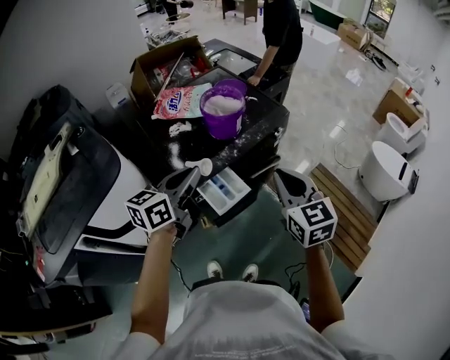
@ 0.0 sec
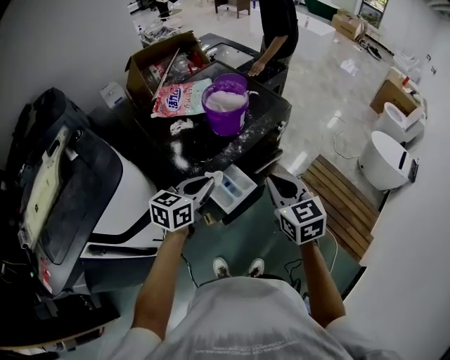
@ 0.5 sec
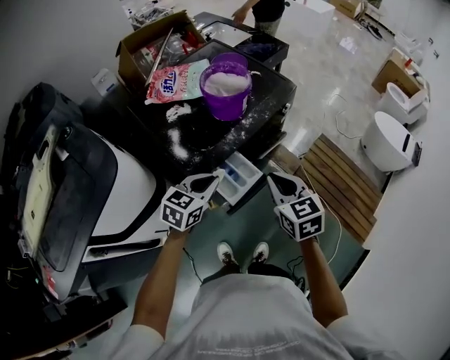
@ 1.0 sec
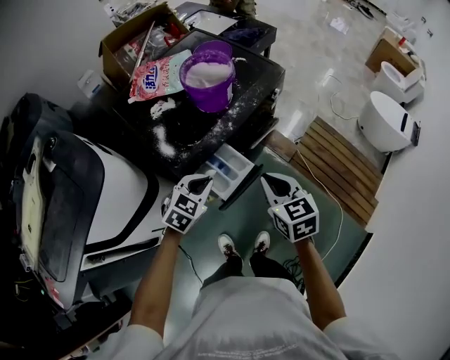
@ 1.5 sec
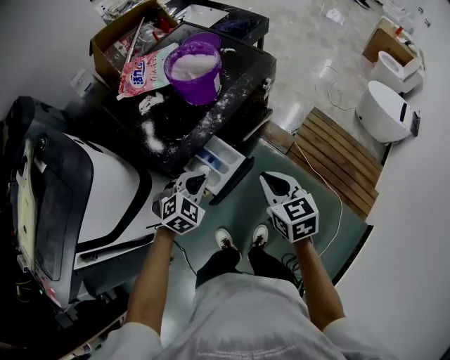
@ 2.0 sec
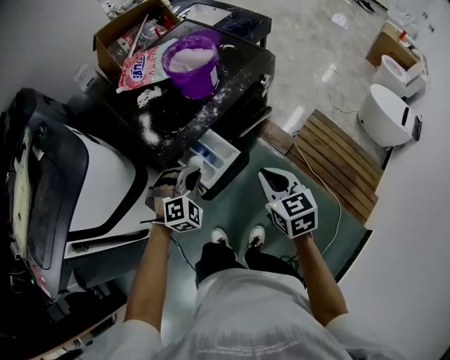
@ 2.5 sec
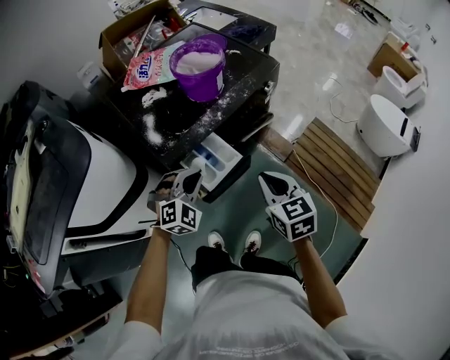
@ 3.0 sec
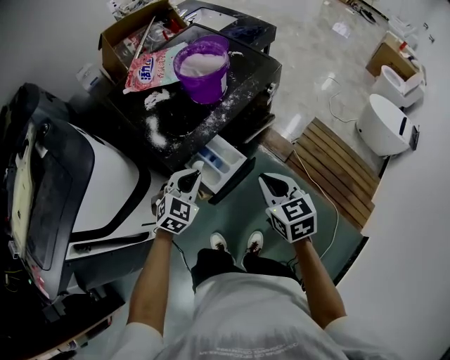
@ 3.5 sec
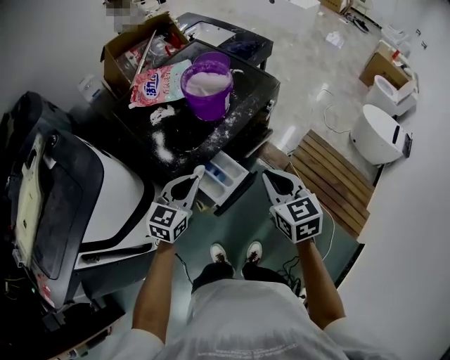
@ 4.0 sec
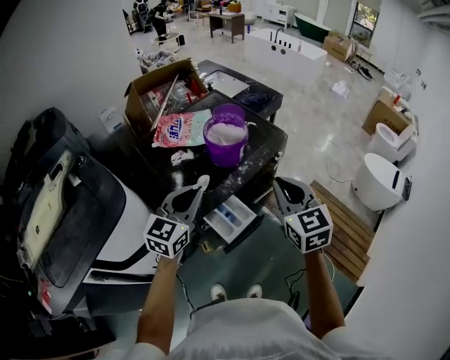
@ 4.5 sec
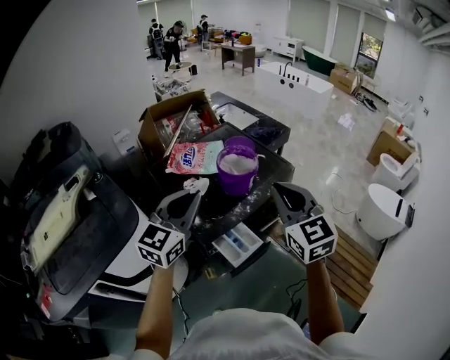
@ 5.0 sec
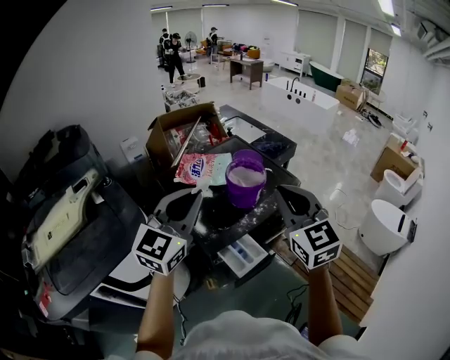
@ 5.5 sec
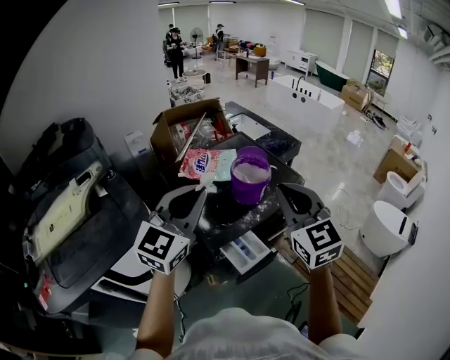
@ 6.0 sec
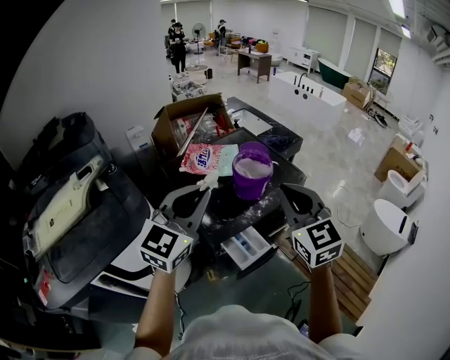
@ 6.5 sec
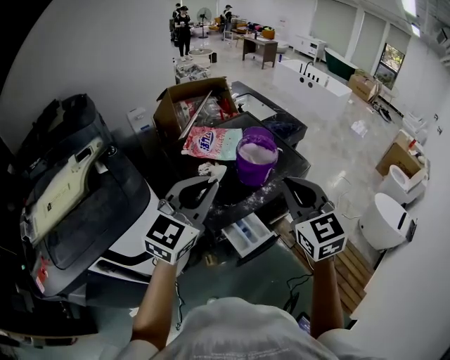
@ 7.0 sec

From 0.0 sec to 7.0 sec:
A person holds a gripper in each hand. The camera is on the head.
From 0.0 sec to 2.0 sec: The grippers both shift downward by approximately 20 cm. The left gripper rolls clockwise, seen from behind, by some 60 degrees.
From 3.5 sec to 5.0 sec: The grippers both shift upward by about 30 cm. The right gripper rotates roughly 30 degrees, while the left gripper tilts its fingers approximately 40 degrees upward.

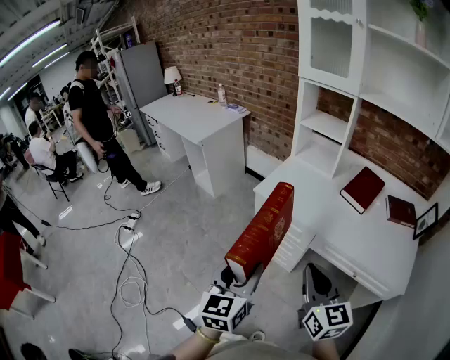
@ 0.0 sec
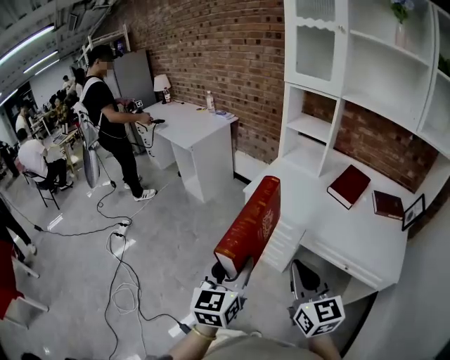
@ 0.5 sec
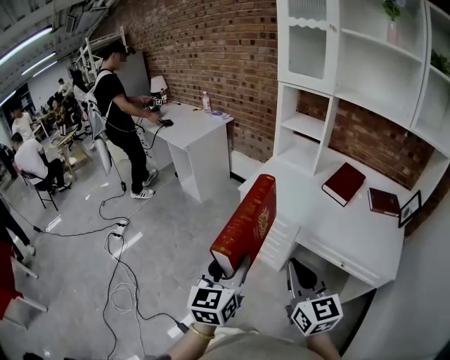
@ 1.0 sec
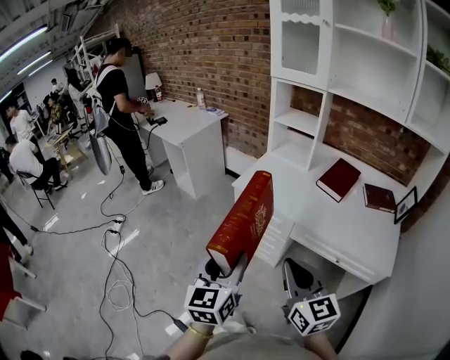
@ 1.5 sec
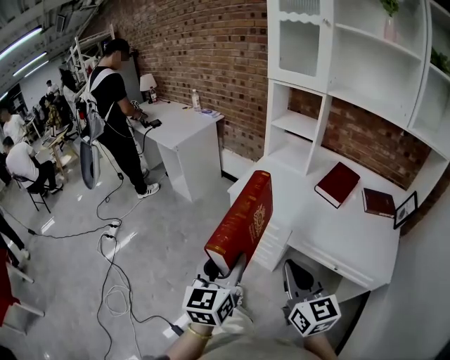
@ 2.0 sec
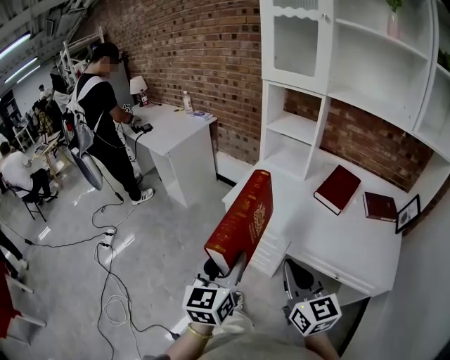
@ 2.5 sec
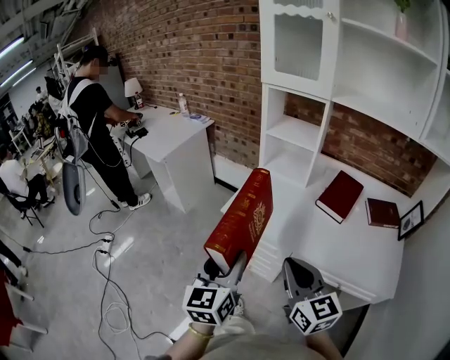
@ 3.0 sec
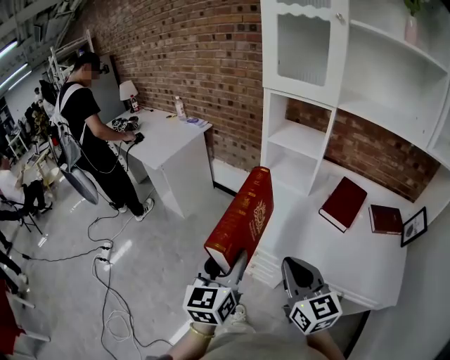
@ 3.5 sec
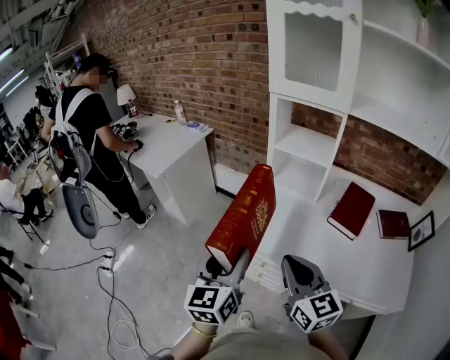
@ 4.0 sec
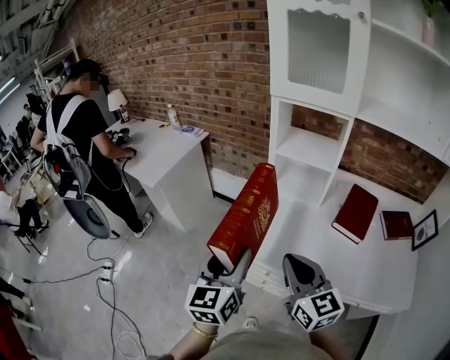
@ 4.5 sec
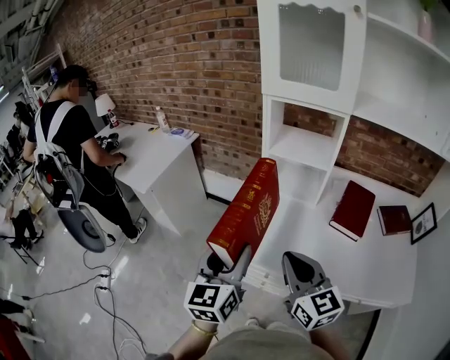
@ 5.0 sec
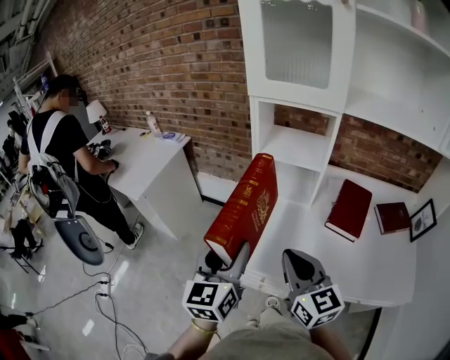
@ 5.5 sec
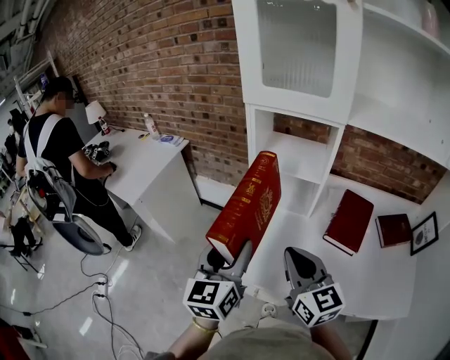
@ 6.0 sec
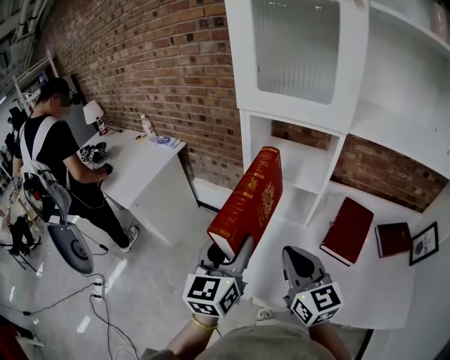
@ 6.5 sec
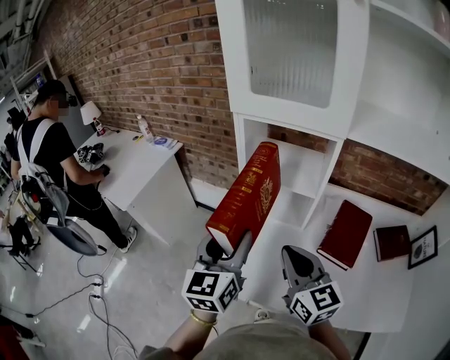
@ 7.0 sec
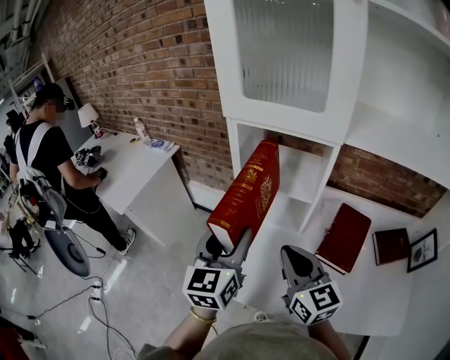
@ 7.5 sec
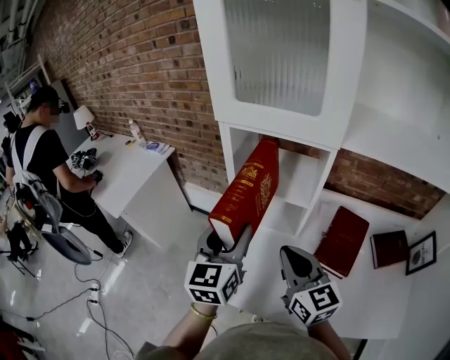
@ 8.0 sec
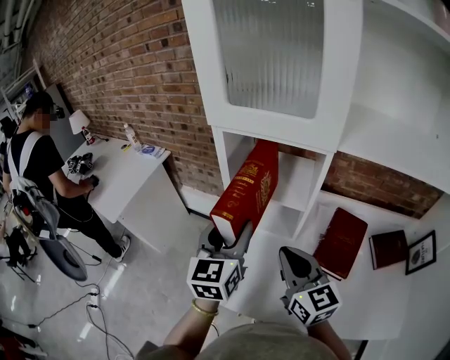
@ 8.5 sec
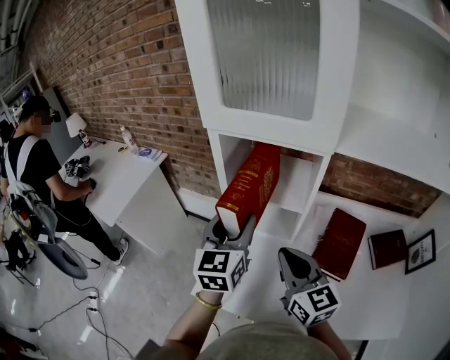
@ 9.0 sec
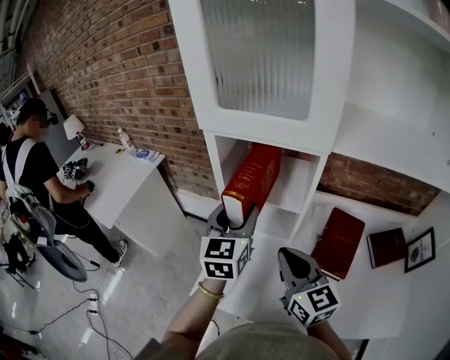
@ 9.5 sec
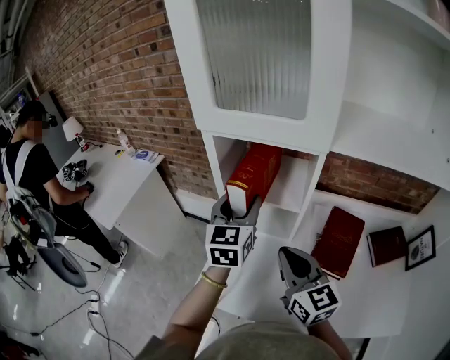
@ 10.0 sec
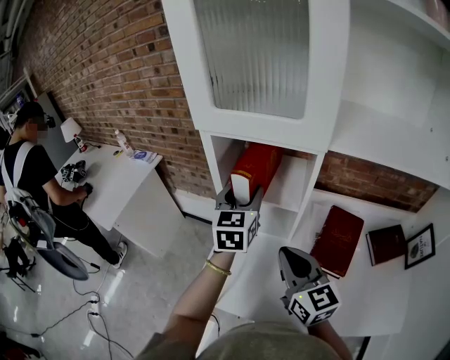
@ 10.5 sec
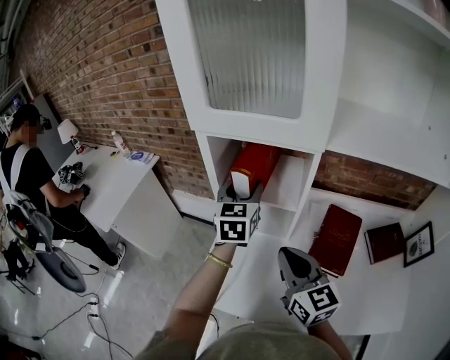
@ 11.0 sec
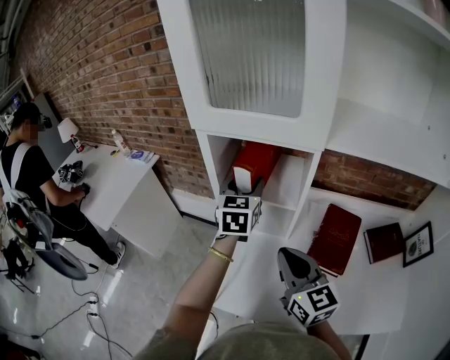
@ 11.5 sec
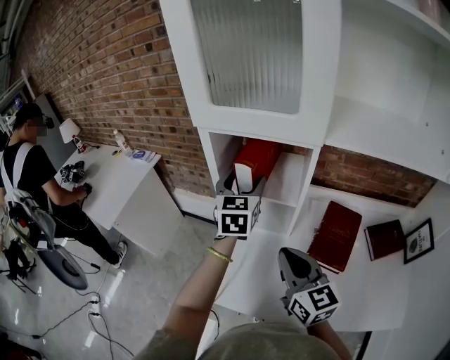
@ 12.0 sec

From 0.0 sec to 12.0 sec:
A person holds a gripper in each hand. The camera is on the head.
From 2.0 sec to 4.0 sec: The grippers both shift forward by about 25 cm.
From 4.0 sec to 6.0 sec: Both grippers move forward, roughly 15 cm.
From 6.0 sec to 8.0 sec: The two grippers go roughly 15 cm forward and to the right.
From 8.0 sec to 10.0 sec: The left gripper heads forward and to the right, covering about 10 cm.
From 10.0 sec to 12.0 sec: The left gripper shifts roughly 5 cm forward.

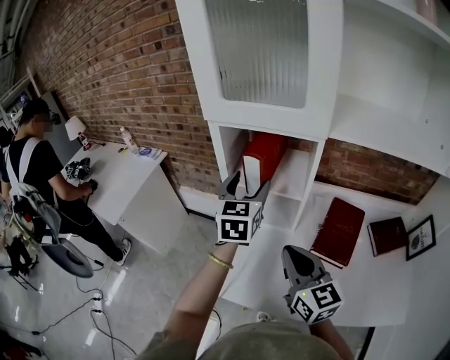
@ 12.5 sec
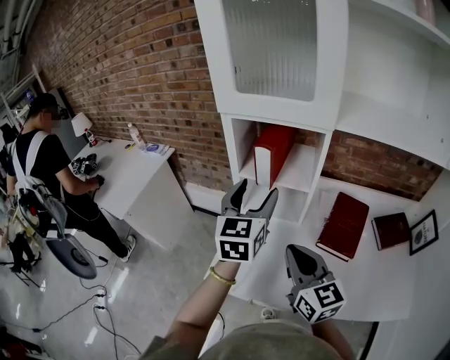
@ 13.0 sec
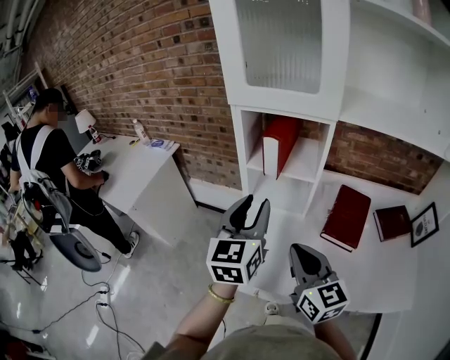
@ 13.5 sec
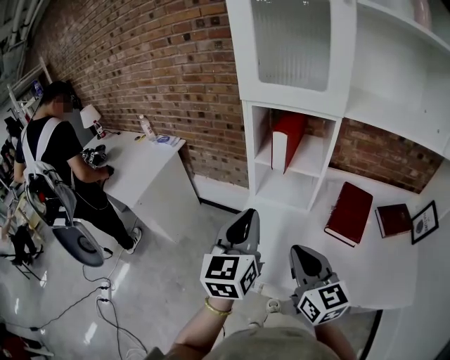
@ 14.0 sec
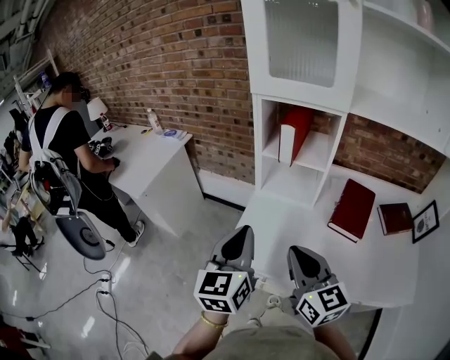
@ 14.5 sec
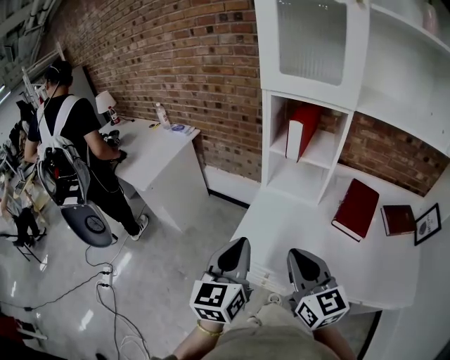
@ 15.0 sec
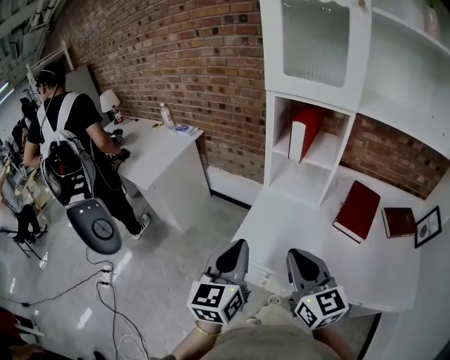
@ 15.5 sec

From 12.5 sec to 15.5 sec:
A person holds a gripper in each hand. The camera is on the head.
From 12.5 sec to 14.0 sec: The left gripper moves backward and to the left, approximately 25 cm, and closes its fingers. Meanwhile the right gripper is displaced backward and to the left by some 10 cm.
From 14.0 sec to 15.5 sec: The left gripper travels backward and to the left by roughly 15 cm. The right gripper shifts roughly 10 cm backward and to the left.

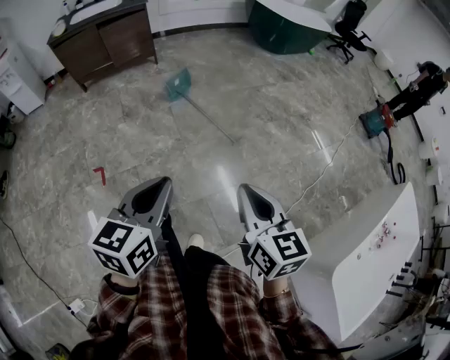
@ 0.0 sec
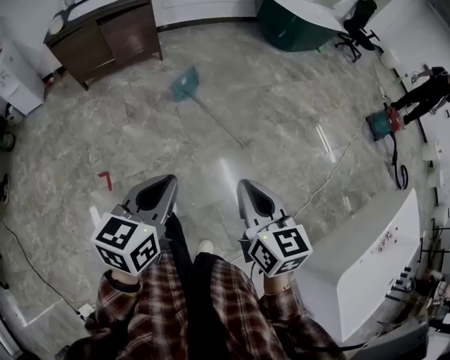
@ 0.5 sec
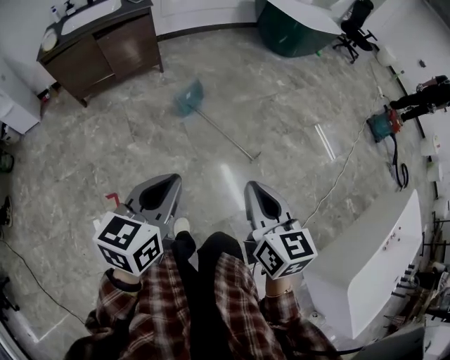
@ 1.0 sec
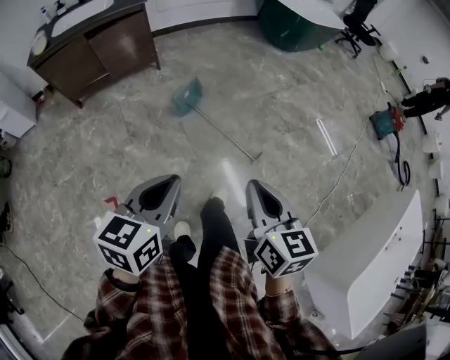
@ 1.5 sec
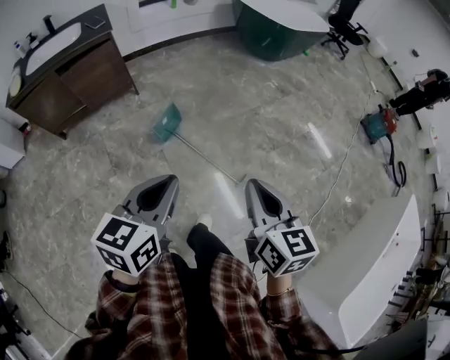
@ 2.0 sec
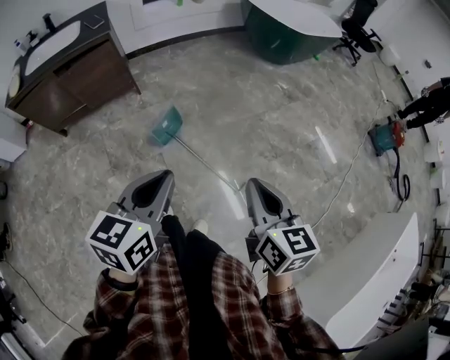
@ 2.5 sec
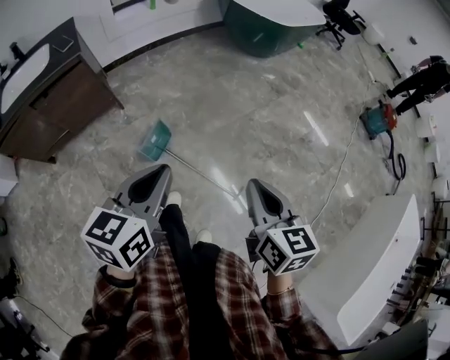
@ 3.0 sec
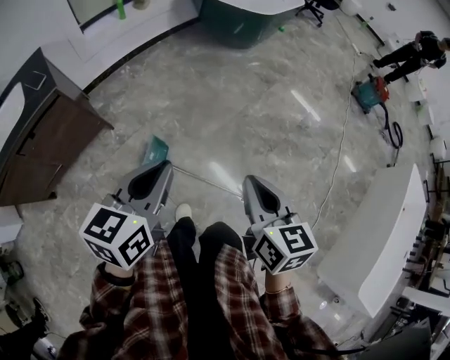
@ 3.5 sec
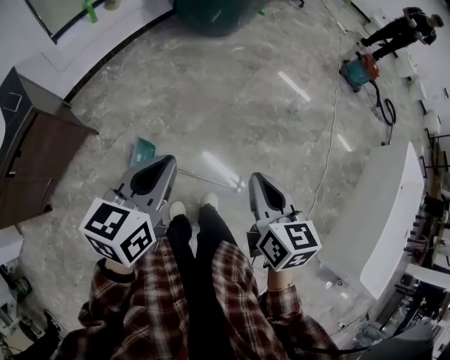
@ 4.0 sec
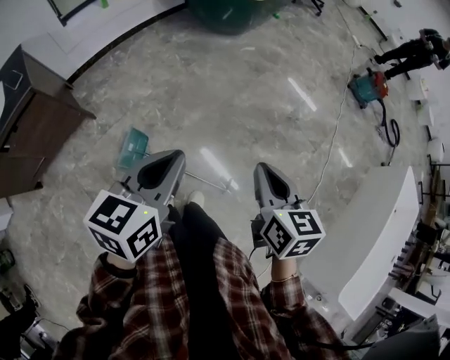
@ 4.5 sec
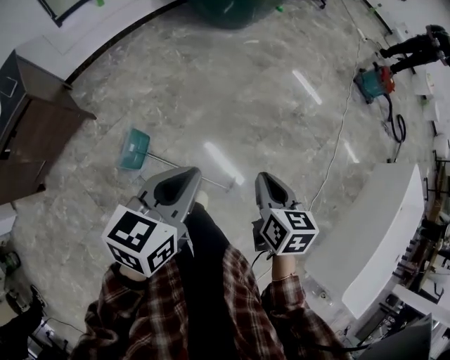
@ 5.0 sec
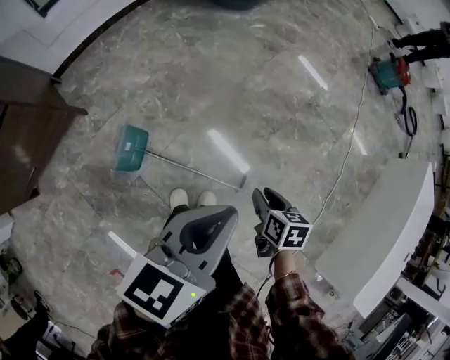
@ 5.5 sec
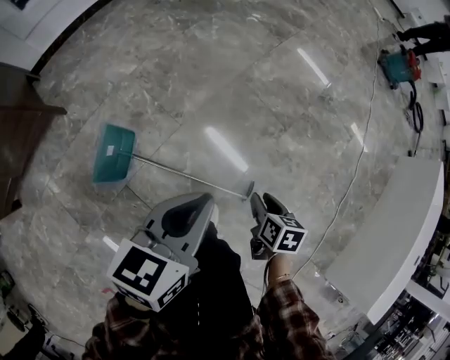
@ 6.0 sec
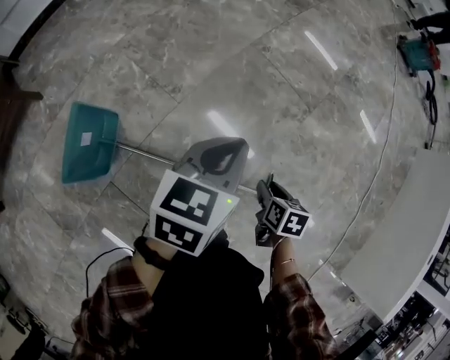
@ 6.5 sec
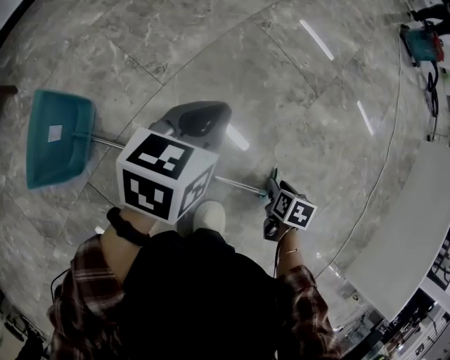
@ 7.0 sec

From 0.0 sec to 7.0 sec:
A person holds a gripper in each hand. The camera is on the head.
From 0.0 sec to 2.0 sec: The pair of grippers is taken forward, approximately 50 cm.
From 2.0 sec to 3.5 sec: The two grippers go about 30 cm forward.
From 3.5 sec to 5.0 sec: The left gripper heads to the right and forward, covering approximately 20 cm. The right gripper is displaced to the right, downward and forward by approximately 20 cm.
From 5.0 sec to 7.0 sec: The two grippers go roughly 70 cm downward. The right gripper angles its fingers downward, by some 30 degrees, and opens.
